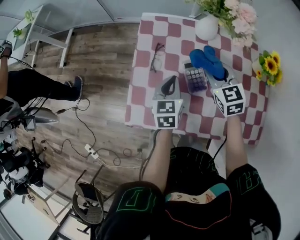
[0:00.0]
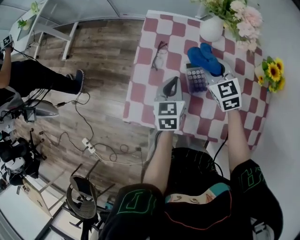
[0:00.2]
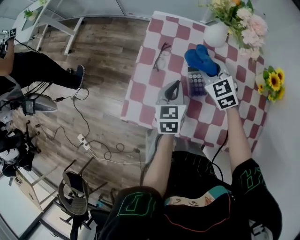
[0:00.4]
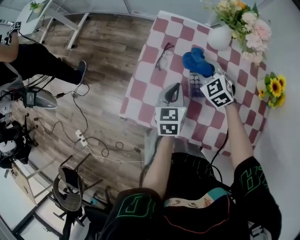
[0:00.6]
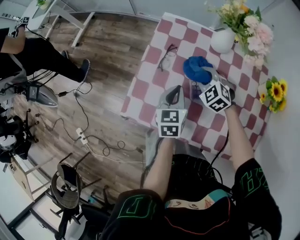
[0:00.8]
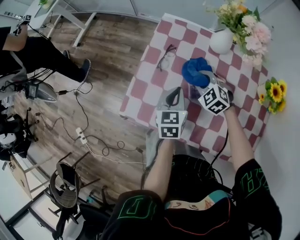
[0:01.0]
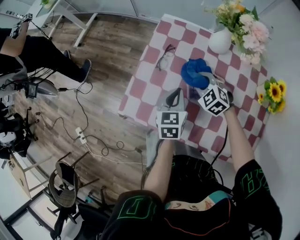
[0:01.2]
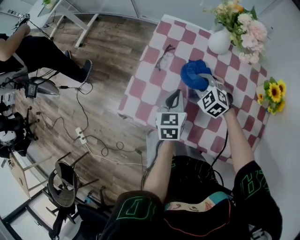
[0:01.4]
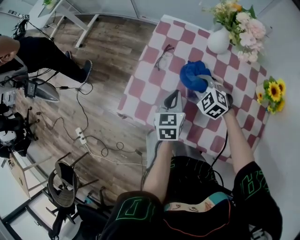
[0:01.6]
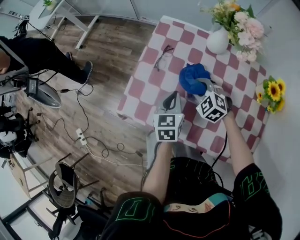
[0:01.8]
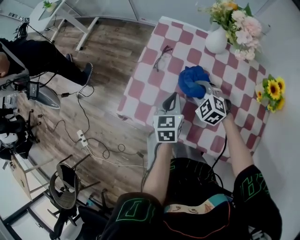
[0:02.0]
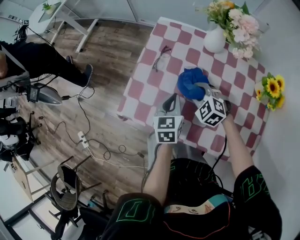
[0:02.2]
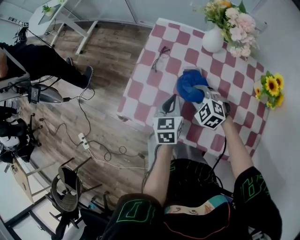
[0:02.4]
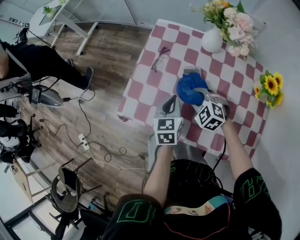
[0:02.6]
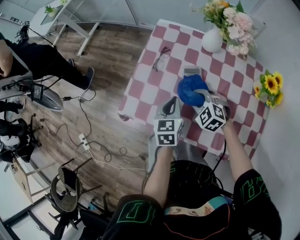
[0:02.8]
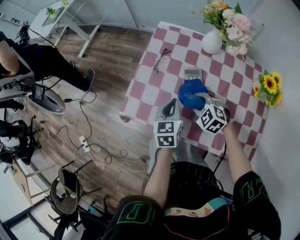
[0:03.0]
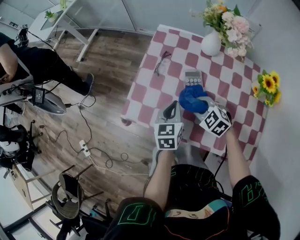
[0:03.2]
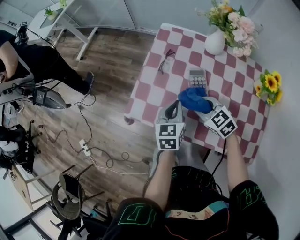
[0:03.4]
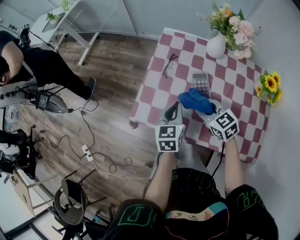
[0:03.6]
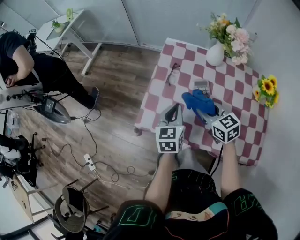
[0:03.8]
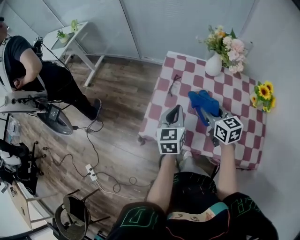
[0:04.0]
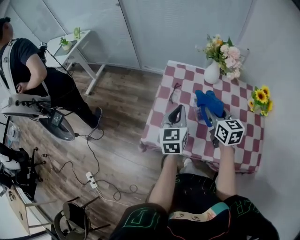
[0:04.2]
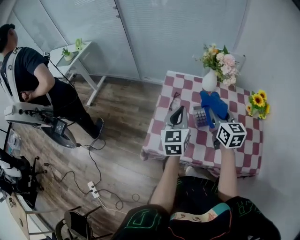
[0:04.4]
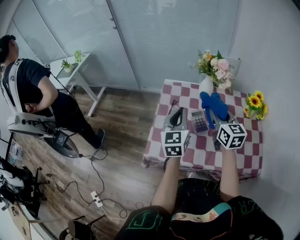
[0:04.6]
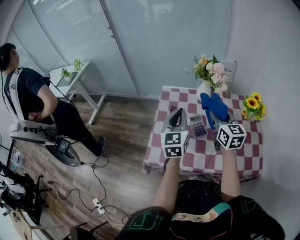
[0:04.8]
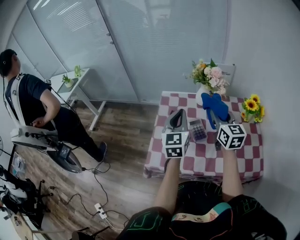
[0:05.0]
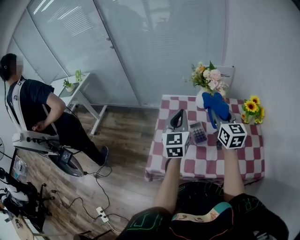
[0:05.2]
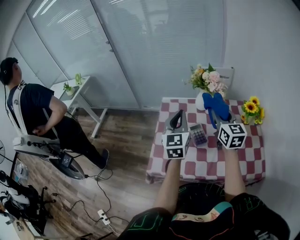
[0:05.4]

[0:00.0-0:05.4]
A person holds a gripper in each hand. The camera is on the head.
0:00.0 to 0:01.4: The right gripper is displaced downward and to the left by approximately 10 cm, and swivels approximately 50 degrees. Meanwhile the left gripper ends up some 5 cm from where it was.
0:01.4 to 0:02.8: The right gripper moves backward, some 10 cm.
0:02.8 to 0:04.0: The right gripper moves upward, about 15 cm, and rotates around the line of its fingers by some 50 degrees, clockwise from behind. Meanwhile the left gripper shifts roughly 10 cm upward and to the left.
0:04.0 to 0:05.4: The right gripper is displaced upward and to the right by some 15 cm, and swivels some 30 degrees; the left gripper goes some 15 cm upward and forward, and rotates approximately 20 degrees.

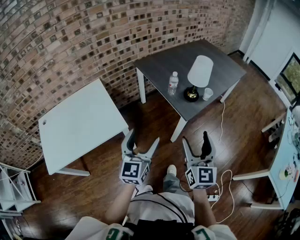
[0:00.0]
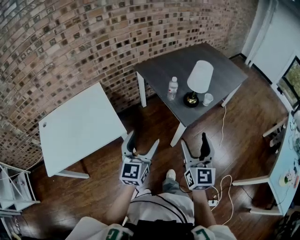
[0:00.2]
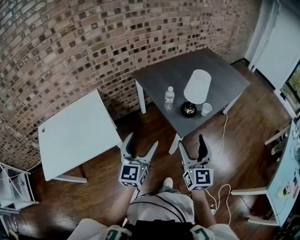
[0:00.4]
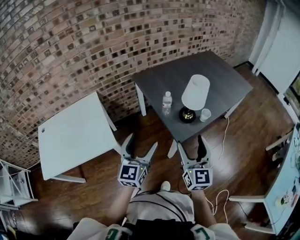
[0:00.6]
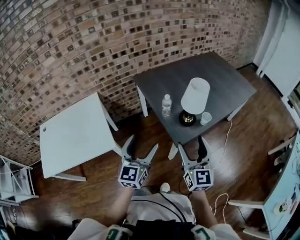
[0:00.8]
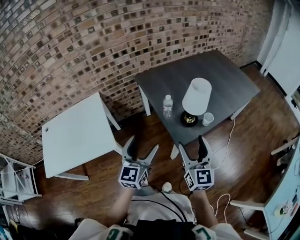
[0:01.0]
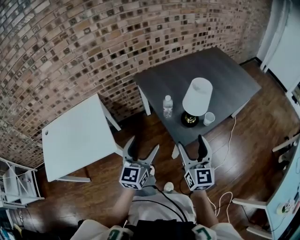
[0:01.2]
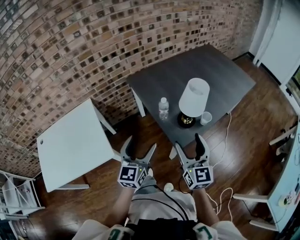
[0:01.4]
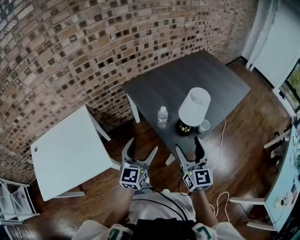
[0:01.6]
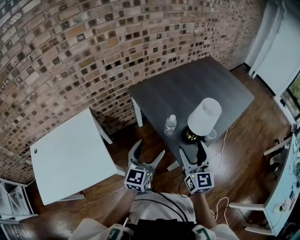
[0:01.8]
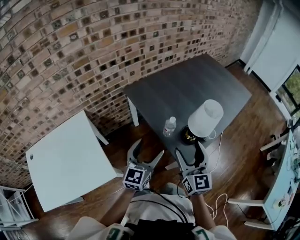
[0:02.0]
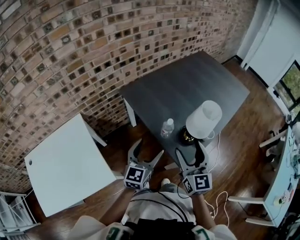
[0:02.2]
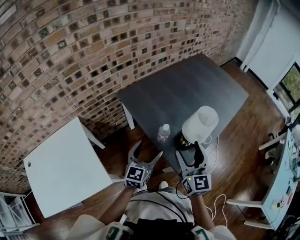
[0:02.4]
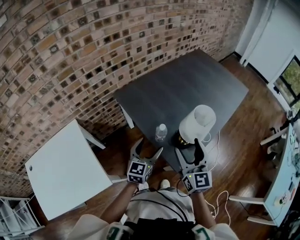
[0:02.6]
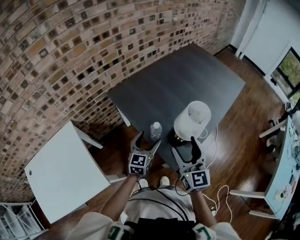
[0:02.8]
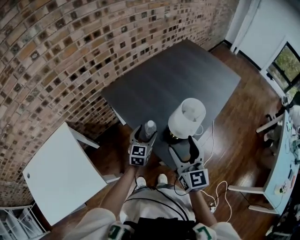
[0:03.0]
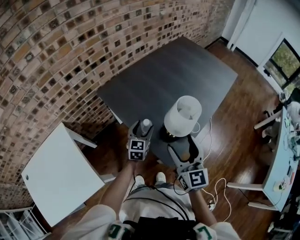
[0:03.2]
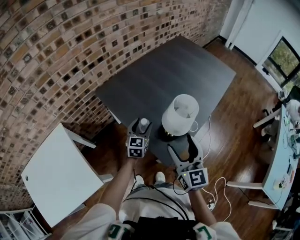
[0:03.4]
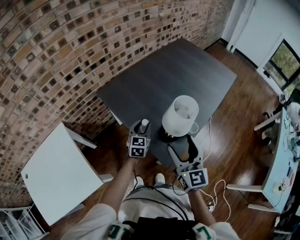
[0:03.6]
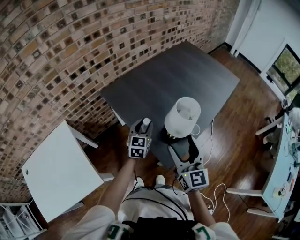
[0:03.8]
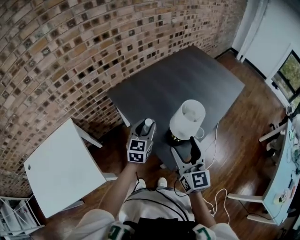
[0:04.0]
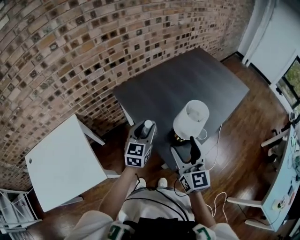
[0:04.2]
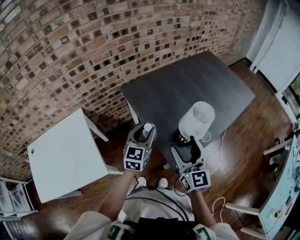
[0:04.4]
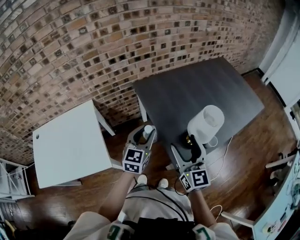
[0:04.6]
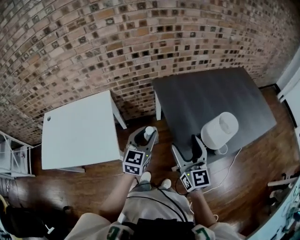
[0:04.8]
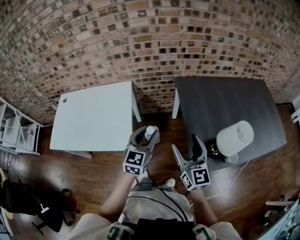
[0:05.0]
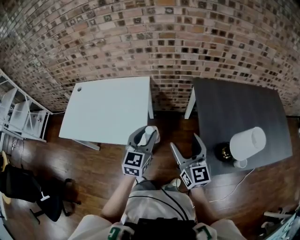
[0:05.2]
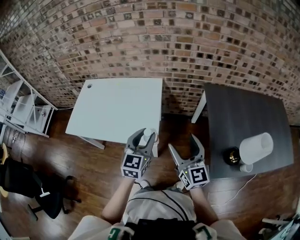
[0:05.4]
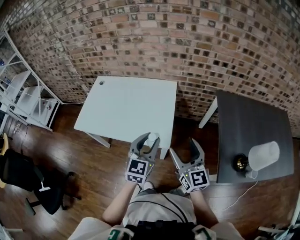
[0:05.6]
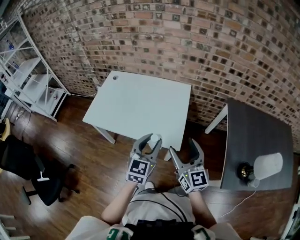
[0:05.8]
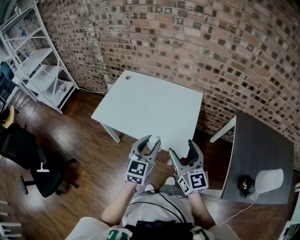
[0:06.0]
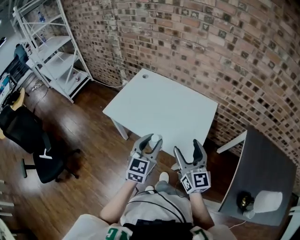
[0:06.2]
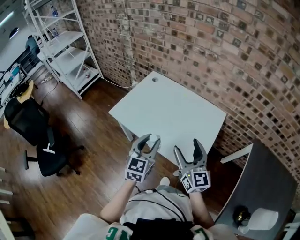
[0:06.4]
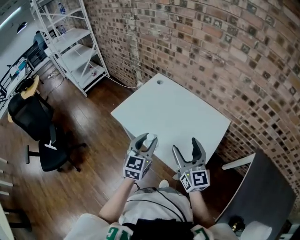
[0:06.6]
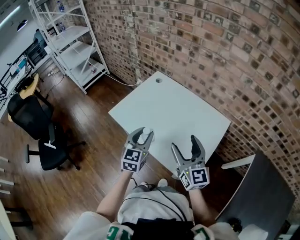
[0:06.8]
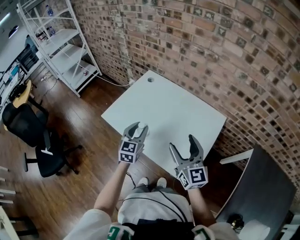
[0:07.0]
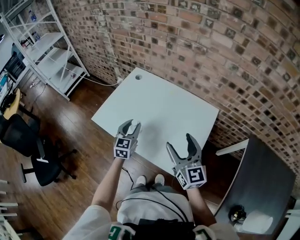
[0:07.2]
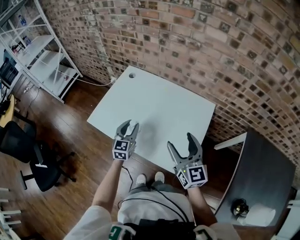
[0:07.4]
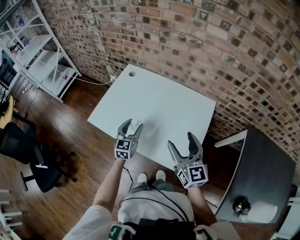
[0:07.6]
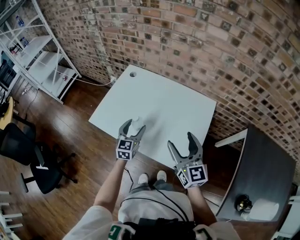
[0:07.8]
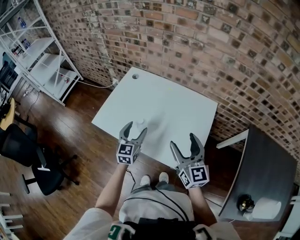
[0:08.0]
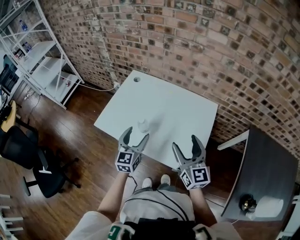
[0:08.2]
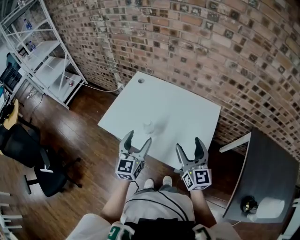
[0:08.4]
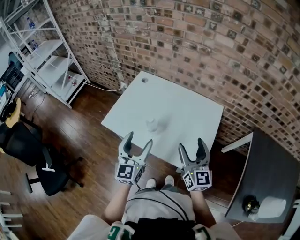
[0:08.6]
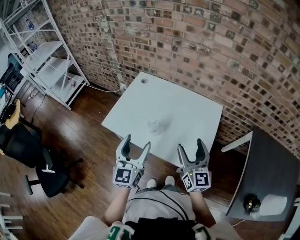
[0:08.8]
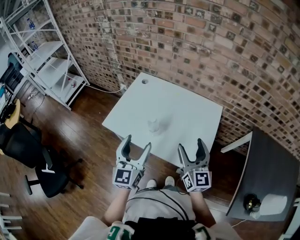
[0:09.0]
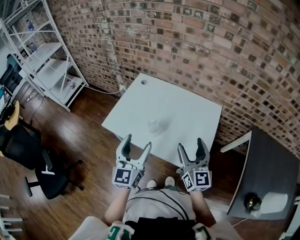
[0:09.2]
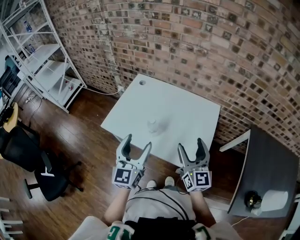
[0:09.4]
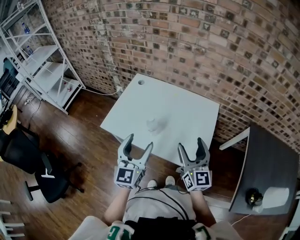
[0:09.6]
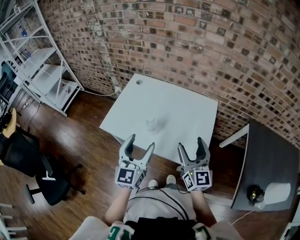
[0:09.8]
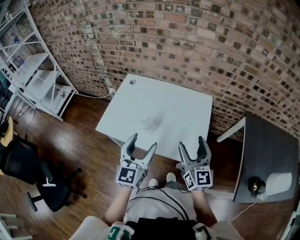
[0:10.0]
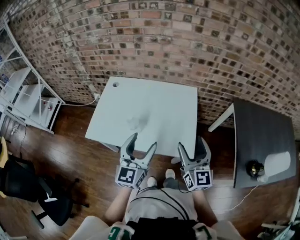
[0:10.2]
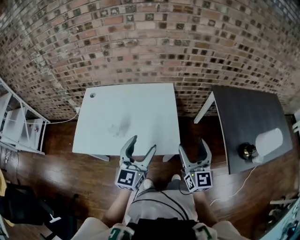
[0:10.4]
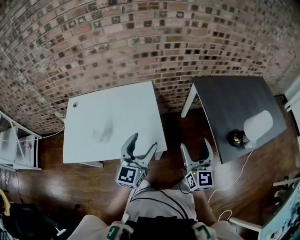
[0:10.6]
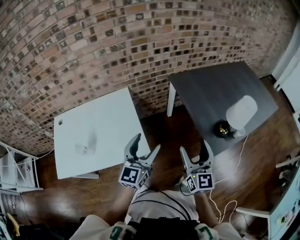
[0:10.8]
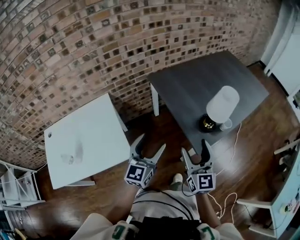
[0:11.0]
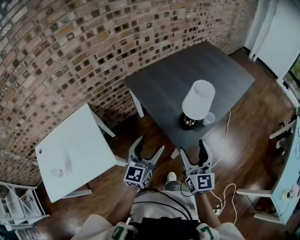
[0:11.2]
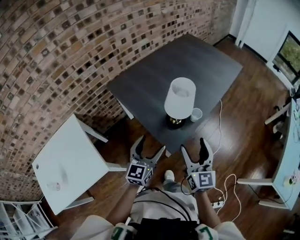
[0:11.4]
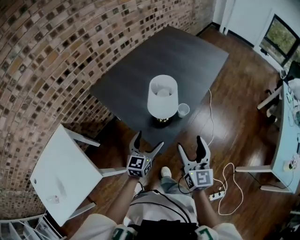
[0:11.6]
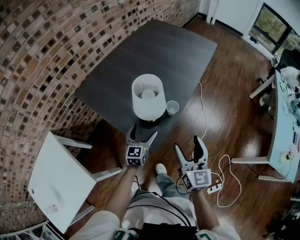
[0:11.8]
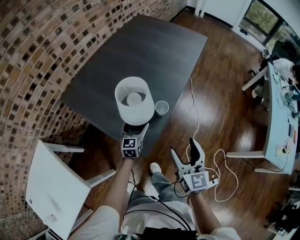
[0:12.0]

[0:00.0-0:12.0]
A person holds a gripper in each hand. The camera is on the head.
0:00.0 to 0:01.6: The left gripper heads forward and to the right, covering about 25 cm; the right gripper moves forward, some 25 cm.
0:01.6 to 0:03.0: The right gripper goes some 10 cm forward, while the left gripper is displaced forward and downward by approximately 25 cm.
0:03.0 to 0:04.4: The left gripper moves upward and backward, about 15 cm.
0:04.4 to 0:06.0: The two grippers travel together, about 60 cm. The left gripper rotates roughly 50 degrees. The right gripper changes its angle by approximately 60 degrees.
0:06.0 to 0:07.6: The right gripper heads forward, covering some 20 cm. Meanwhile the left gripper moves forward and downward, roughly 30 cm.
0:07.6 to 0:09.0: The right gripper shifts by some 5 cm, while the left gripper moves upward and backward, about 20 cm, and swivels approximately 20 degrees.
0:09.0 to 0:10.4: The left gripper changes place by approximately 15 cm, and rotates about 30 degrees, while the right gripper moves approximately 20 cm, and turns by some 30 degrees.
0:10.4 to 0:12.0: The pair of grippers is taken approximately 70 cm. The right gripper swivels approximately 60 degrees. Meanwhile the left gripper swivels some 50 degrees.

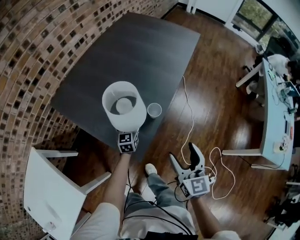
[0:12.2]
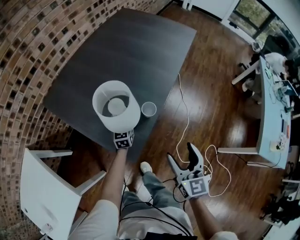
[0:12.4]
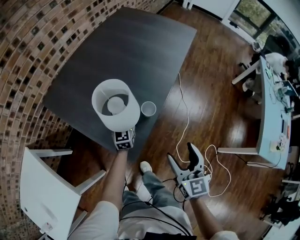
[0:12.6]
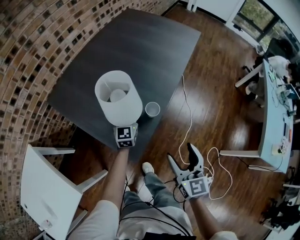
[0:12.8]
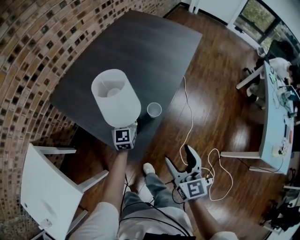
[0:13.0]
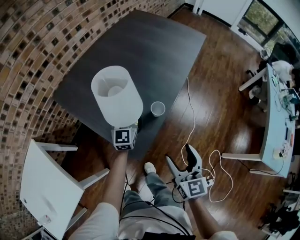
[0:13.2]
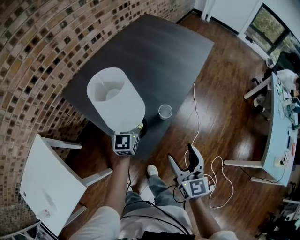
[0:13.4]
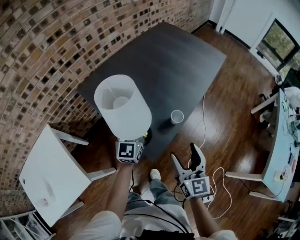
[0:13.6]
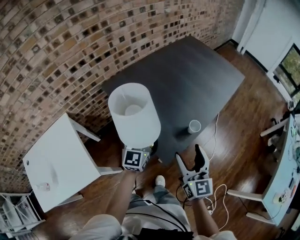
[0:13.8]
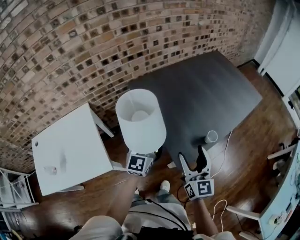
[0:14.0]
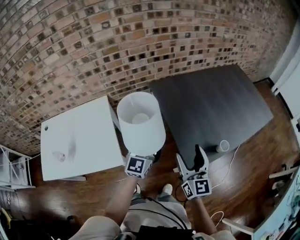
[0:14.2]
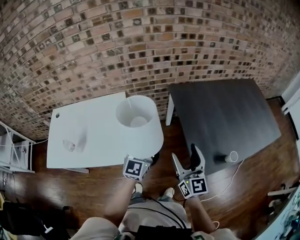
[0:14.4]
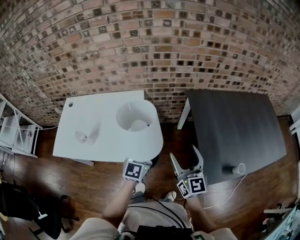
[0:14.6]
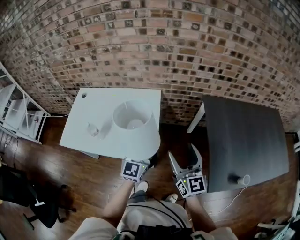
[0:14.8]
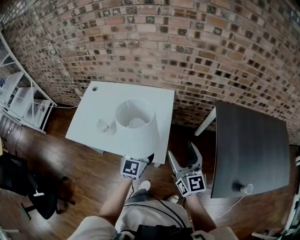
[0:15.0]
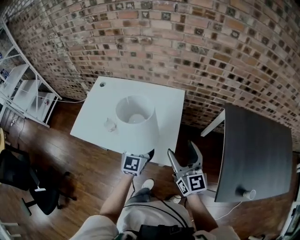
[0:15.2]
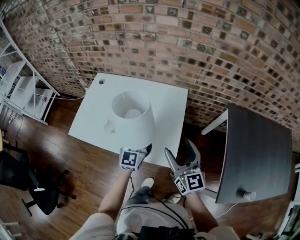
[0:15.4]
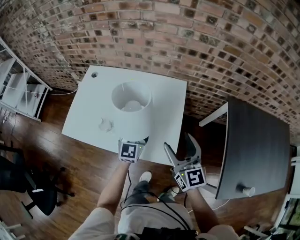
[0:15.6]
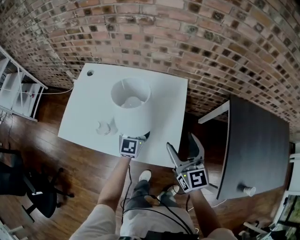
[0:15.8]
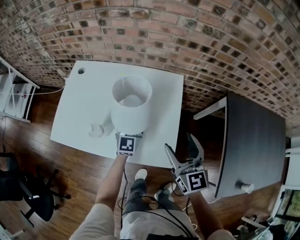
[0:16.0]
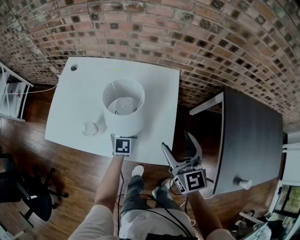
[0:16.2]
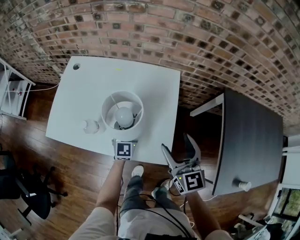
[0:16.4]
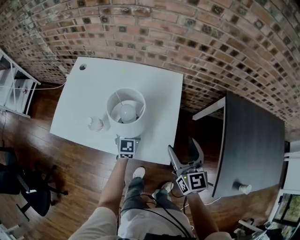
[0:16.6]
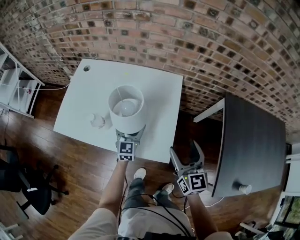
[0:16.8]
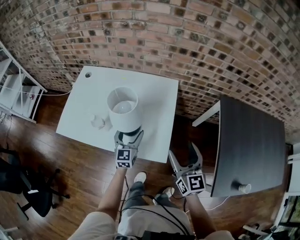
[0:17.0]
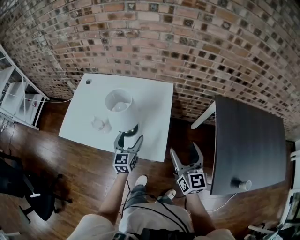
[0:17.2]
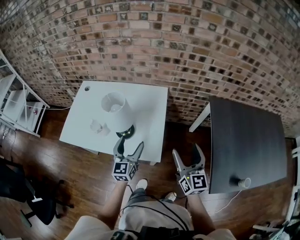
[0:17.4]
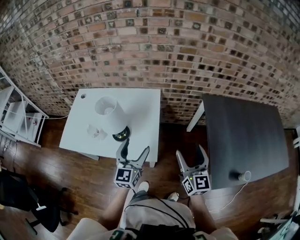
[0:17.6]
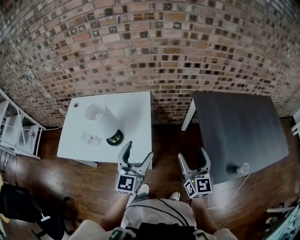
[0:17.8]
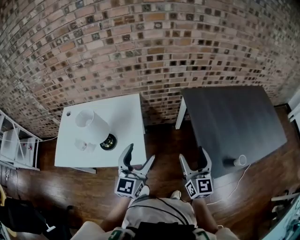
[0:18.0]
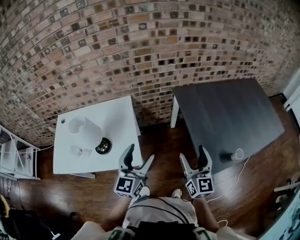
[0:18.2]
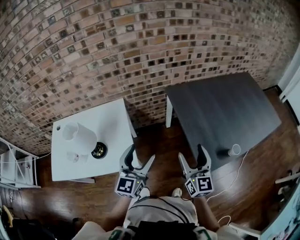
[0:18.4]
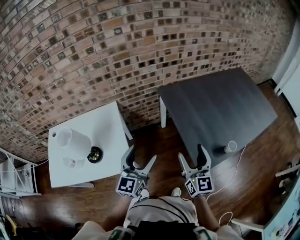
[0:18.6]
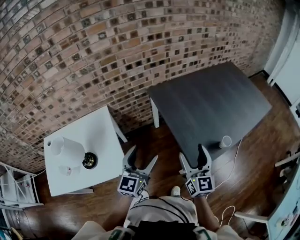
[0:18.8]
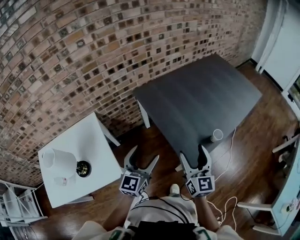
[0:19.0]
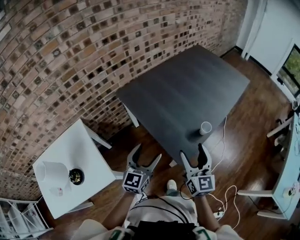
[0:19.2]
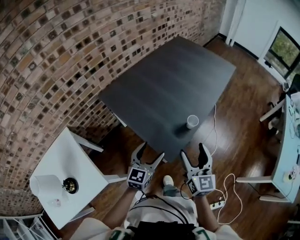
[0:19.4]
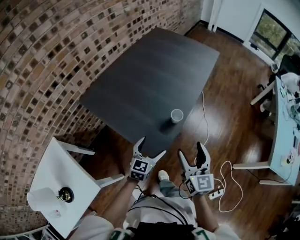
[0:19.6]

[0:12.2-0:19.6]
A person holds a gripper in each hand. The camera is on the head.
0:12.2 to 0:13.6: The left gripper heads upward, covering approximately 25 cm, turns by about 30 degrees, and closes, while the right gripper heads to the left, covering some 5 cm.
0:13.6 to 0:15.2: Both grippers are carried about 70 cm. The right gripper changes its angle by roughly 70 degrees, while the left gripper swivels some 60 degrees.
0:15.2 to 0:16.6: The left gripper travels downward and forward by some 20 cm, while the right gripper is displaced downward and forward by about 10 cm.
0:16.6 to 0:18.2: The right gripper moves some 35 cm, and swivels approximately 30 degrees. Meanwhile the left gripper ends up approximately 40 cm from where it was, and rotates approximately 30 degrees.
0:18.2 to 0:19.6: The left gripper ends up approximately 50 cm from where it was, and swivels about 60 degrees, while the right gripper shifts by roughly 35 cm, and swivels about 40 degrees.
